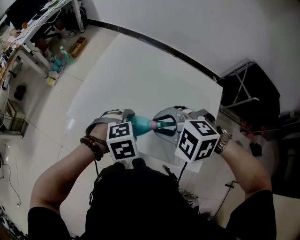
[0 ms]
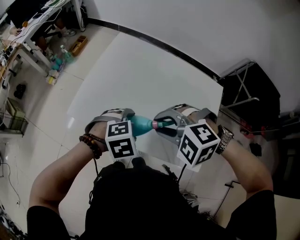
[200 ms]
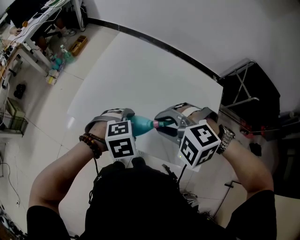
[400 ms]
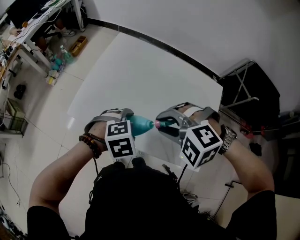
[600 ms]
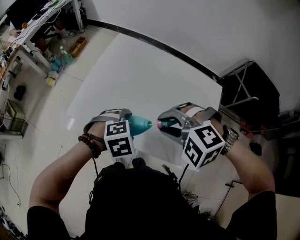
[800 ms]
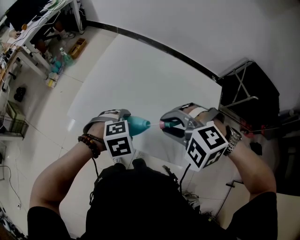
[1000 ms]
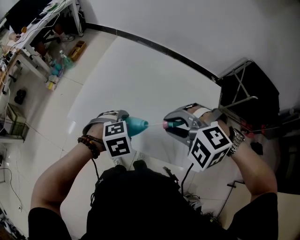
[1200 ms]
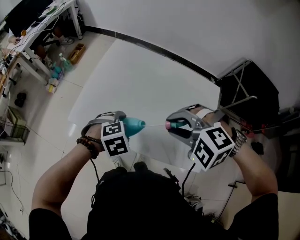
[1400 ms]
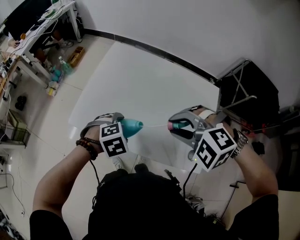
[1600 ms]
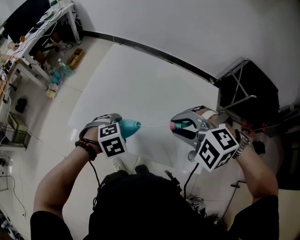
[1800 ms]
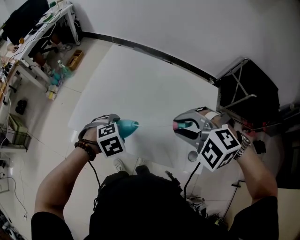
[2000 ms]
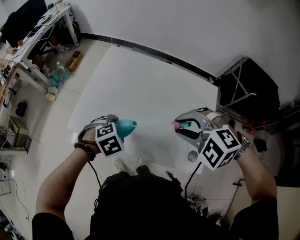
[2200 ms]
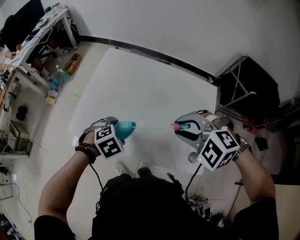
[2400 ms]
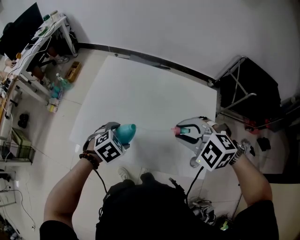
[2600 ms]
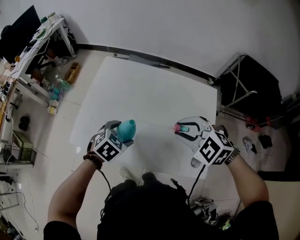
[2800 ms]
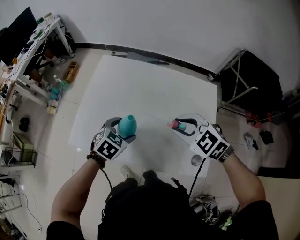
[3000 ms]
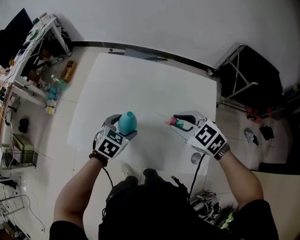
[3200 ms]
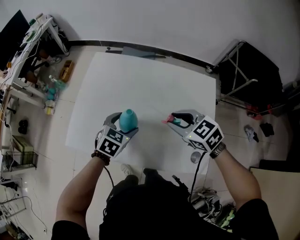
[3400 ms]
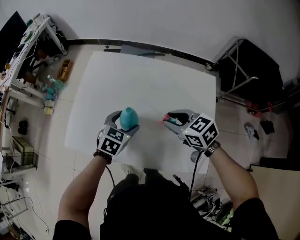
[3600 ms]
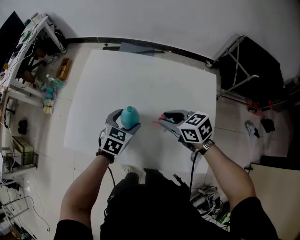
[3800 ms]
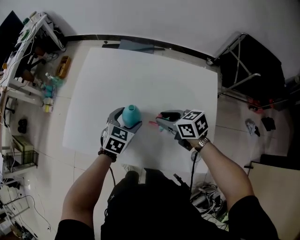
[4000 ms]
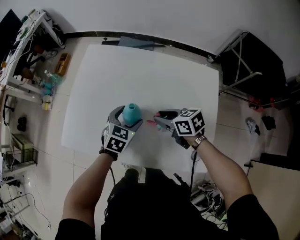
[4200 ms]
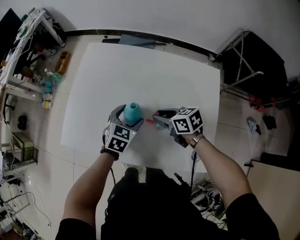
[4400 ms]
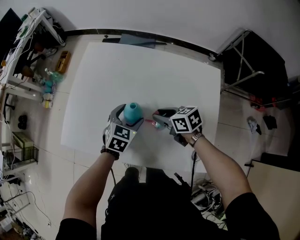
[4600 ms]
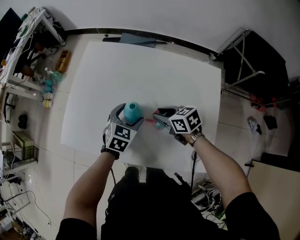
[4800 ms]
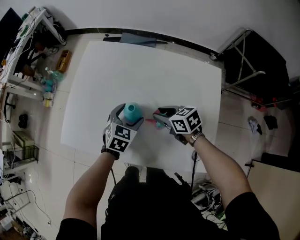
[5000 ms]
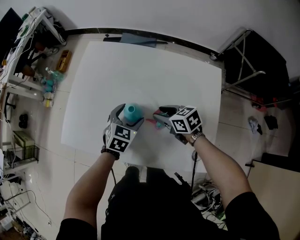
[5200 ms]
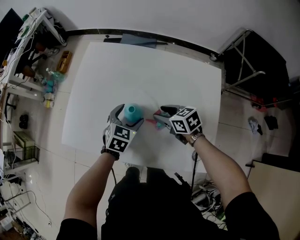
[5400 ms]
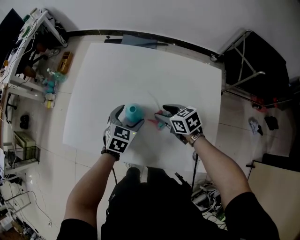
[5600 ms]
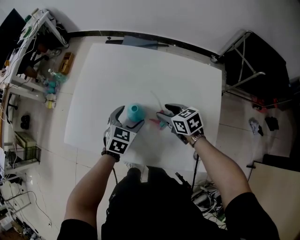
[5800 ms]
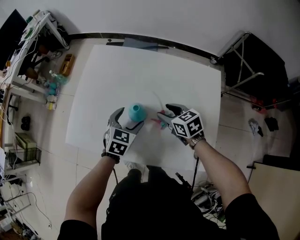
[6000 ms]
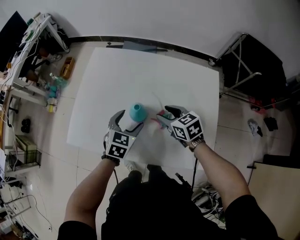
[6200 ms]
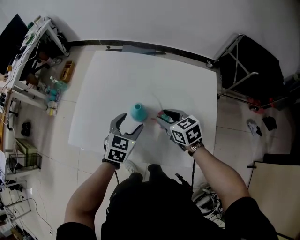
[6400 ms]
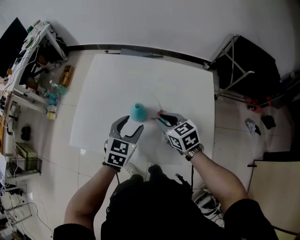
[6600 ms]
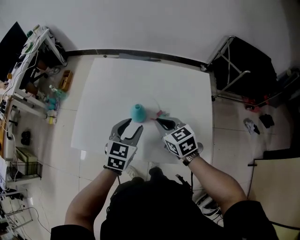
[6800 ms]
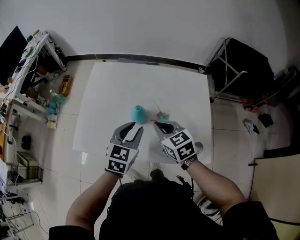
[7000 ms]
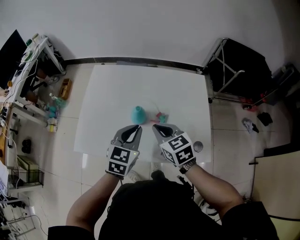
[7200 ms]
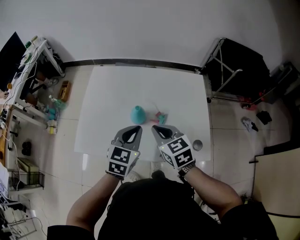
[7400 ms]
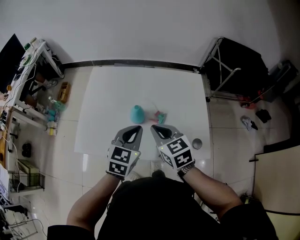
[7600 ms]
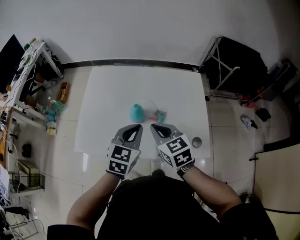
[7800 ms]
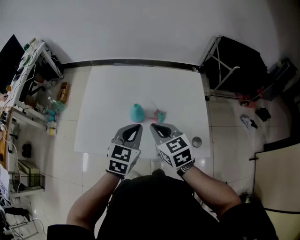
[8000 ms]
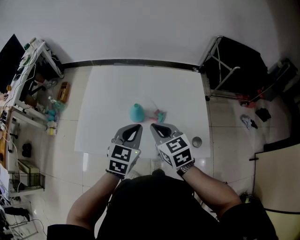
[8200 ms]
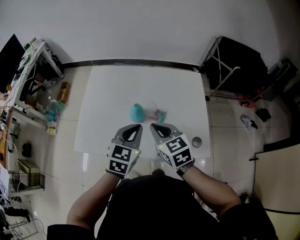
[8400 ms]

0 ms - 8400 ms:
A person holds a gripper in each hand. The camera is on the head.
0 ms - 1400 ms: The right gripper ends up some 5 cm from where it was.
1400 ms - 2800 ms: The right gripper moves to the right, roughly 5 cm, and changes its angle by approximately 30 degrees. Meanwhile the left gripper is displaced forward by about 5 cm, and rotates some 20 degrees.
2800 ms - 4200 ms: The right gripper heads downward and forward, covering approximately 15 cm, and rotates around the line of its fingers by approximately 60 degrees, clockwise from behind; the left gripper is displaced to the right and forward by about 10 cm.
4200 ms - 5600 ms: The right gripper opens up.
5600 ms - 7000 ms: The right gripper is displaced upward, backward and to the left by some 15 cm, turns by about 20 degrees, and closes up; the left gripper shifts roughly 15 cm upward and backward, and closes its fingers.
7000 ms - 8400 ms: The right gripper shifts by about 5 cm.

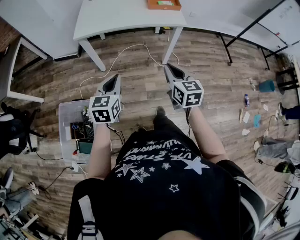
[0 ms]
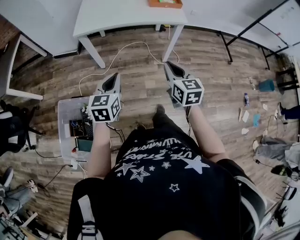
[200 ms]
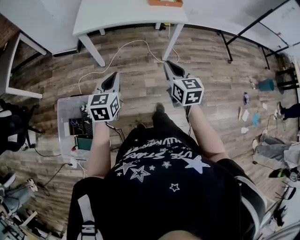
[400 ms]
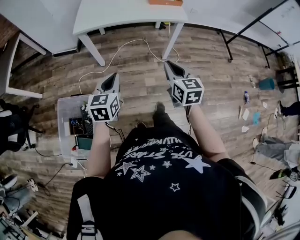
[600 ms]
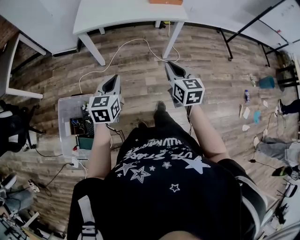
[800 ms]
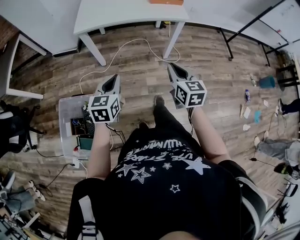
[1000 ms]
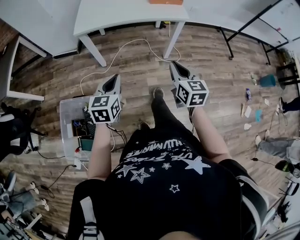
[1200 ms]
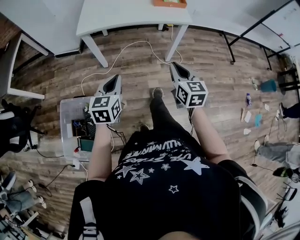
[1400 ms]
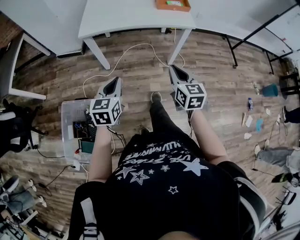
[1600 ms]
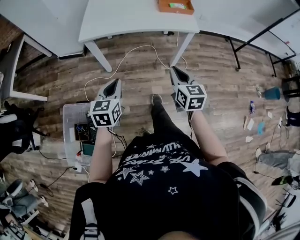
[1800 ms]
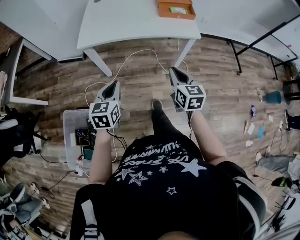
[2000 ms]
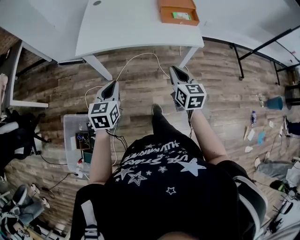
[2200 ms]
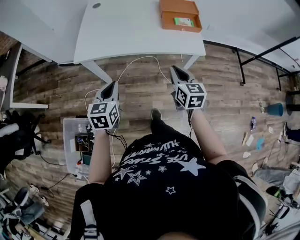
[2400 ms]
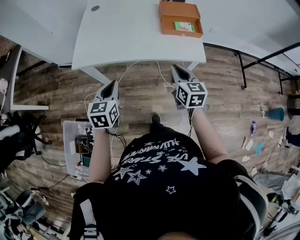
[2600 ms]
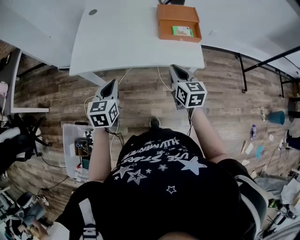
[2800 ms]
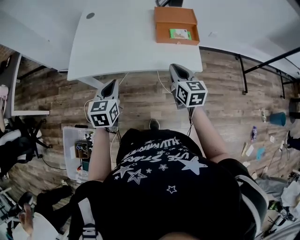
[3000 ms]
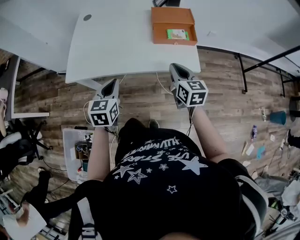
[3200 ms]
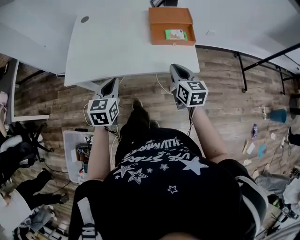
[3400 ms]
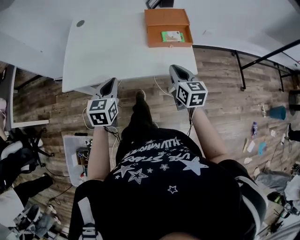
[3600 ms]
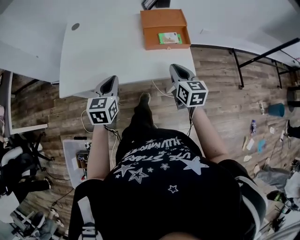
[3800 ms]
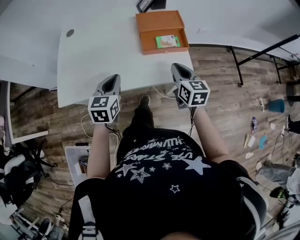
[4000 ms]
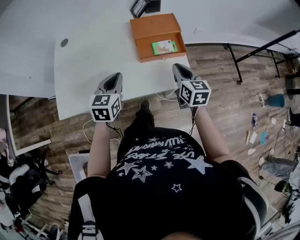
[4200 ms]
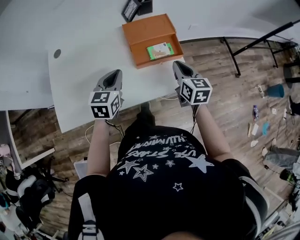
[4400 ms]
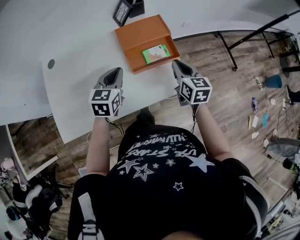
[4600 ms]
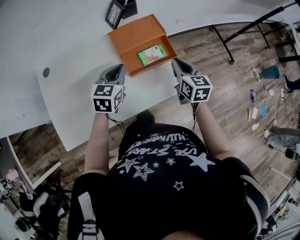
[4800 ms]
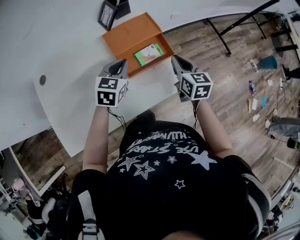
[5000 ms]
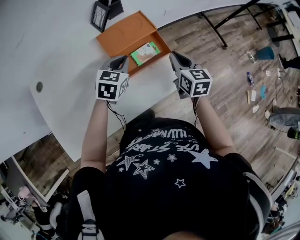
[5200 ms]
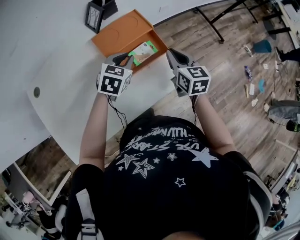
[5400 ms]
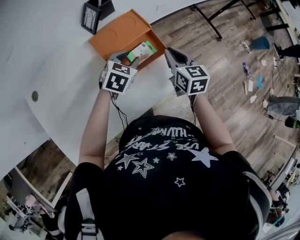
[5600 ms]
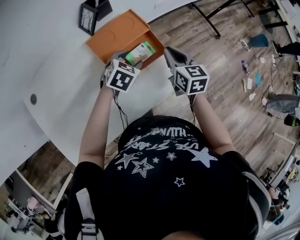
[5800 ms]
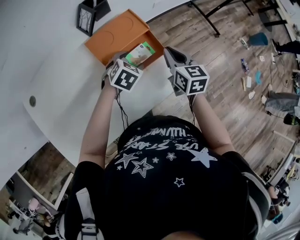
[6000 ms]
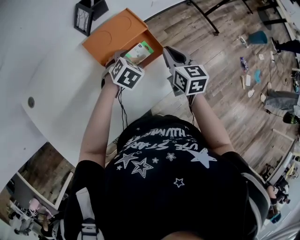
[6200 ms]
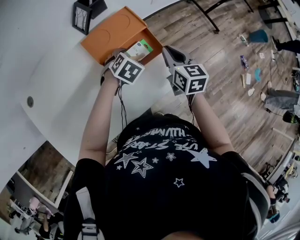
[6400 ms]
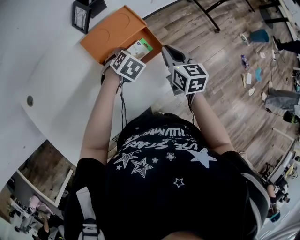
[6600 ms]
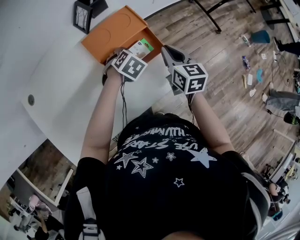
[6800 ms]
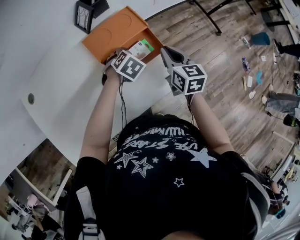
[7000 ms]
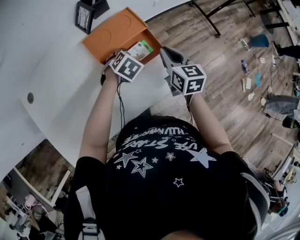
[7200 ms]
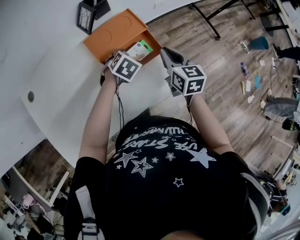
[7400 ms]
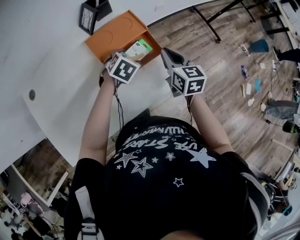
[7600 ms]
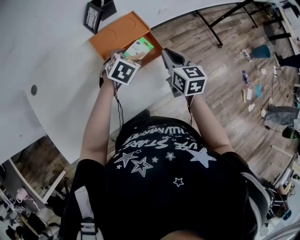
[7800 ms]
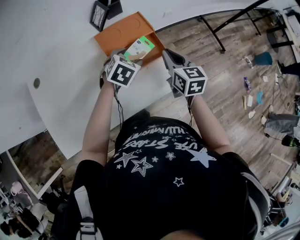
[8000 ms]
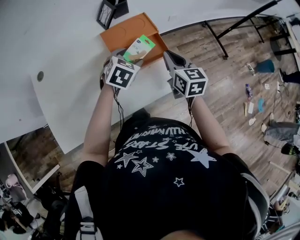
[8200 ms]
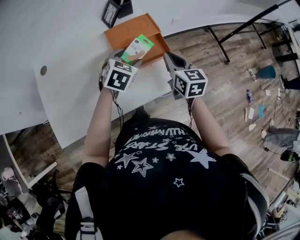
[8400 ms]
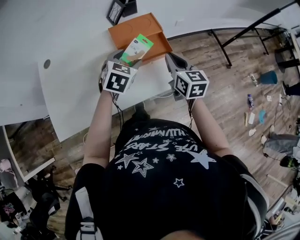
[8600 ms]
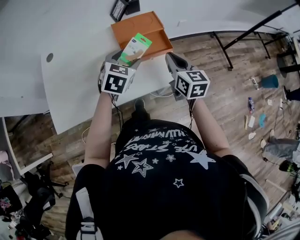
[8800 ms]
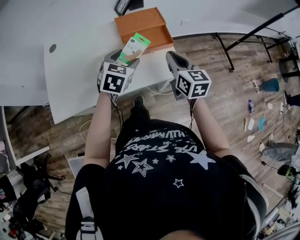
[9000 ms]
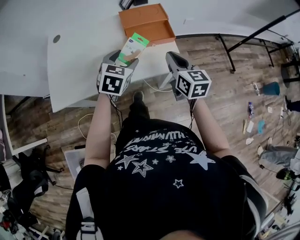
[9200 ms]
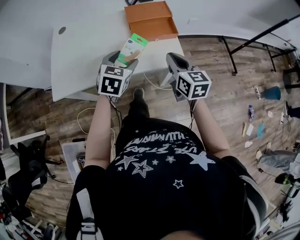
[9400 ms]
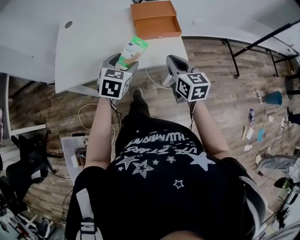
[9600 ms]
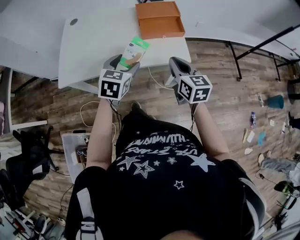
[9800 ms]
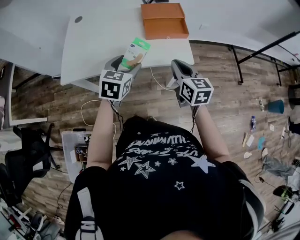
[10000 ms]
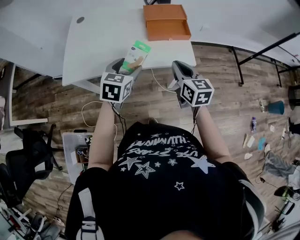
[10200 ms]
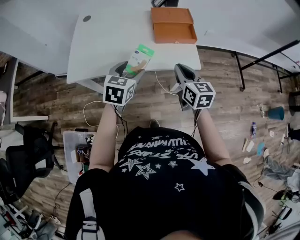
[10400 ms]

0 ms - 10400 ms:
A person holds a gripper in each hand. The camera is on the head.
0 ms - 1400 ms: The grippers move only a little.
1400 ms - 3000 ms: Both grippers are carried forward, roughly 50 cm.
3000 ms - 4400 ms: Both grippers move forward and to the right, some 25 cm. The left gripper rotates roughly 20 degrees.
4400 ms - 6000 ms: The left gripper ends up some 25 cm from where it was, swivels approximately 50 degrees, and opens. The right gripper shifts by approximately 10 cm.
6000 ms - 7400 ms: There are only small adjustments of the grippers.
7400 ms - 9000 ms: The two grippers go approximately 20 cm backward and upward. The left gripper swivels roughly 40 degrees.
9000 ms - 10400 ms: The grippers both shift backward by approximately 20 cm.

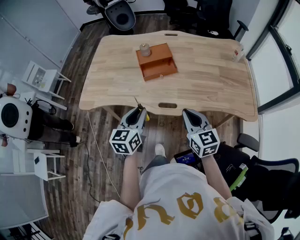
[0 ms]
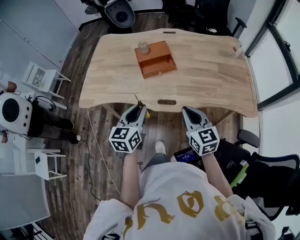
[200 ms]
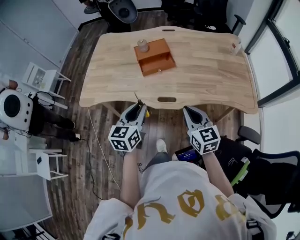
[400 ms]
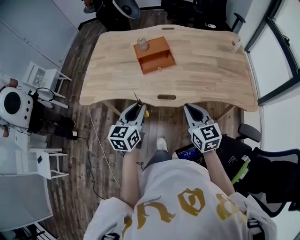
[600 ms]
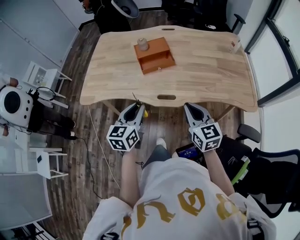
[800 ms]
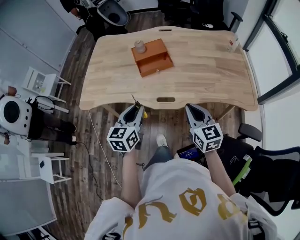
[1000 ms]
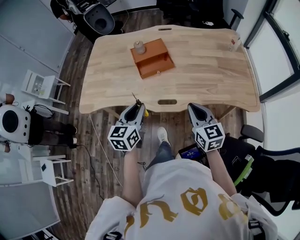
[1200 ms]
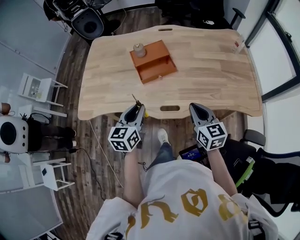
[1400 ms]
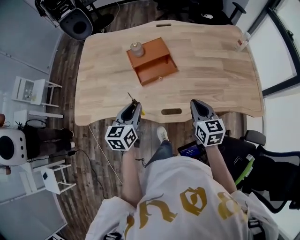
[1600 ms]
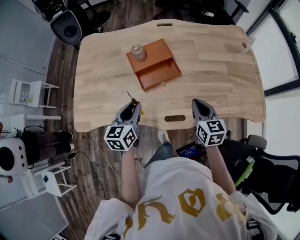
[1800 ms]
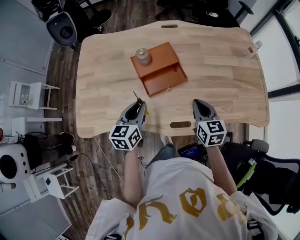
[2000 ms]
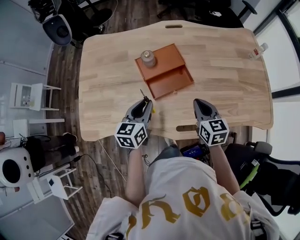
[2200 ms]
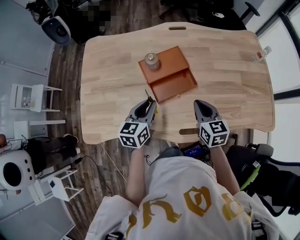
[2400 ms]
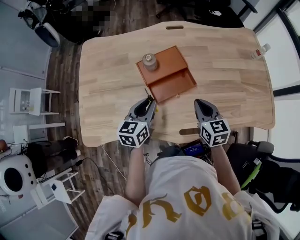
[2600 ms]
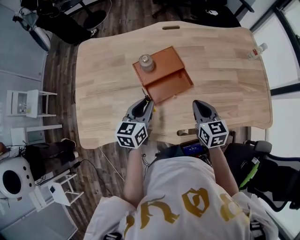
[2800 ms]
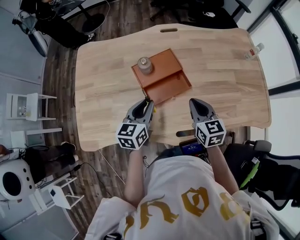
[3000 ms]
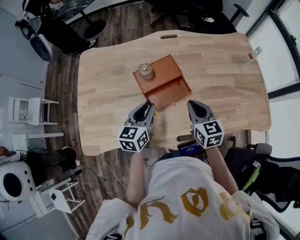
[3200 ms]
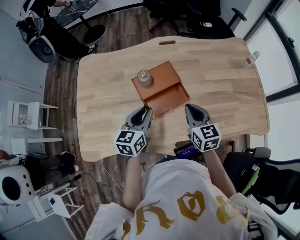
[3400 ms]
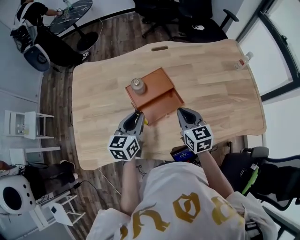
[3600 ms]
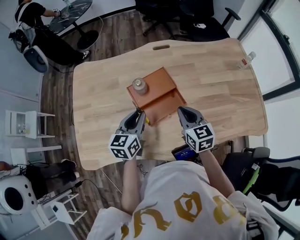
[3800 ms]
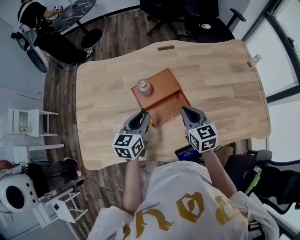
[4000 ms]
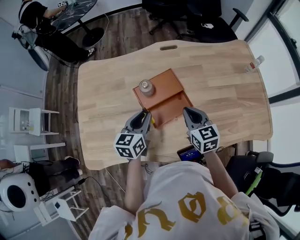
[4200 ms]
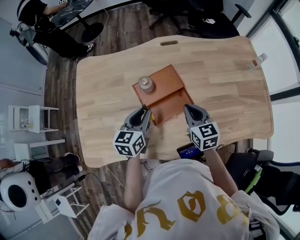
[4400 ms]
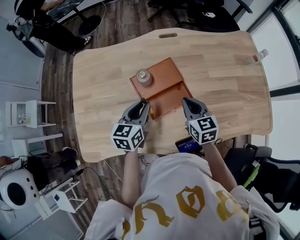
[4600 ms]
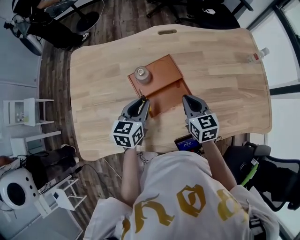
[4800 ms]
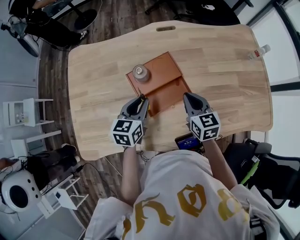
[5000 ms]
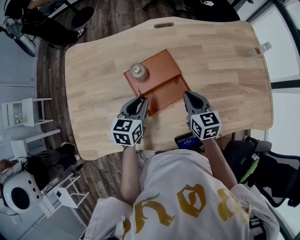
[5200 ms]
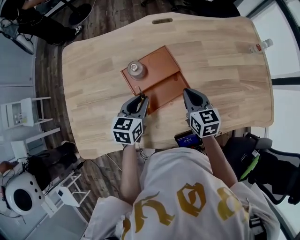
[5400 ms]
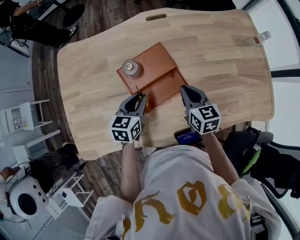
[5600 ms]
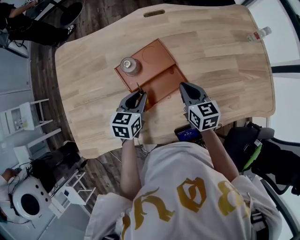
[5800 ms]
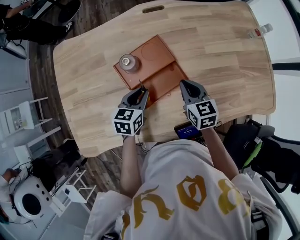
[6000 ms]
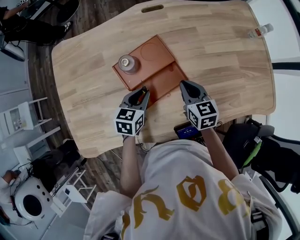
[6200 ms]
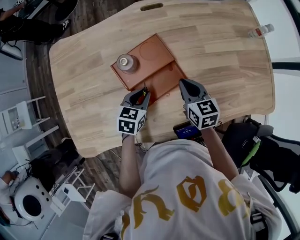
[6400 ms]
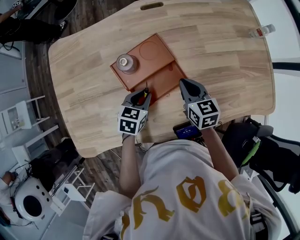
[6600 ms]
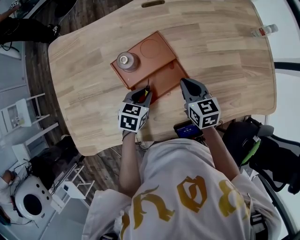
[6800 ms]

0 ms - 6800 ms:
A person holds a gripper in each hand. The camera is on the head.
0 ms - 1400 ms: The grippers both shift forward by about 5 cm.
1400 ms - 2800 ms: The right gripper shifts some 20 cm forward and to the left, while the left gripper goes approximately 20 cm forward.
2800 ms - 4000 ms: Both grippers travel together forward, approximately 5 cm.
4000 ms - 5400 ms: The two grippers go roughly 5 cm downward.
5400 ms - 6800 ms: The left gripper is displaced downward by roughly 10 cm, and swivels roughly 20 degrees.
